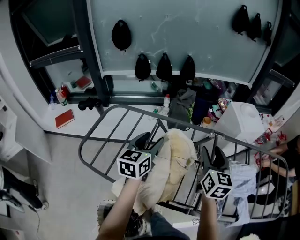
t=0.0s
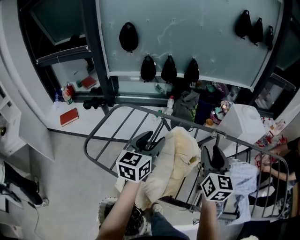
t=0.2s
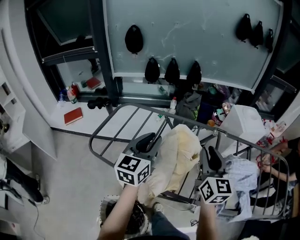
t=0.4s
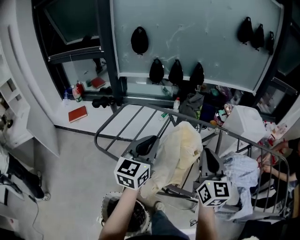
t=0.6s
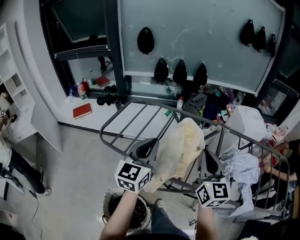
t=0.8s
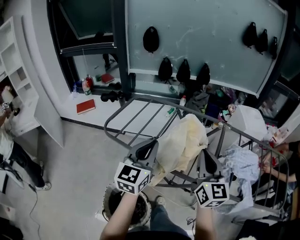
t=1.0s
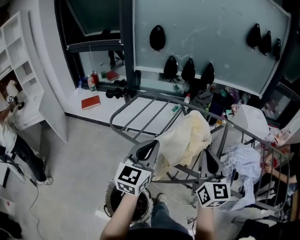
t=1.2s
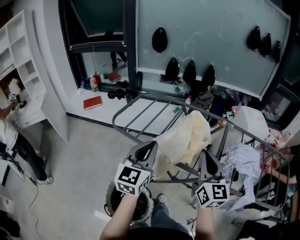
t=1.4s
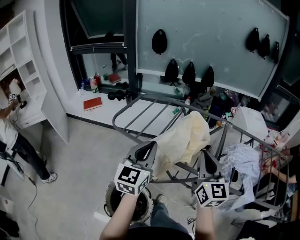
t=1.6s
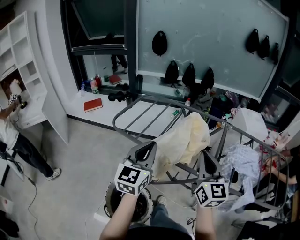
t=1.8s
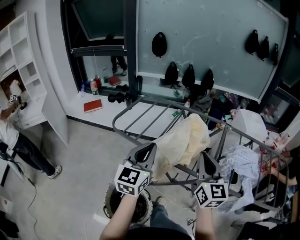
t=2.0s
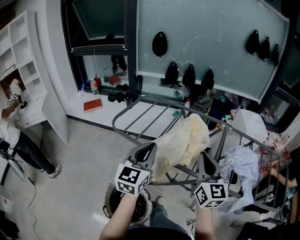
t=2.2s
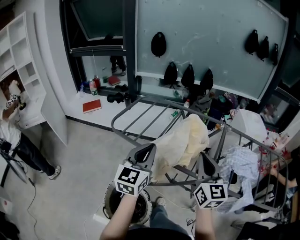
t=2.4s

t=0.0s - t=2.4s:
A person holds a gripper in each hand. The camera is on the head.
t=0.0s - t=1.2s: The left gripper shifts approximately 30 cm backward, rotates approximately 20 degrees, and closes its fingers. The right gripper is displaced backward and to the left by approximately 25 cm, changes its angle by approximately 30 degrees, and closes up.
t=1.2s - t=2.4s: The grippers make only small movements.

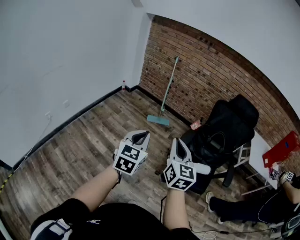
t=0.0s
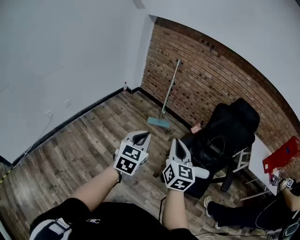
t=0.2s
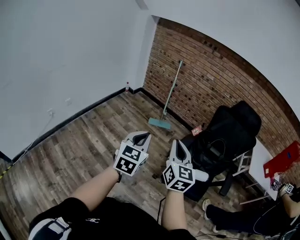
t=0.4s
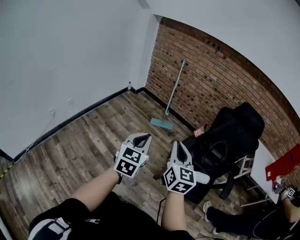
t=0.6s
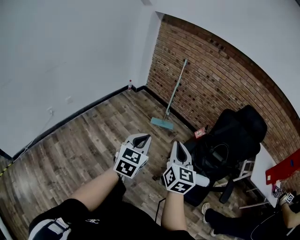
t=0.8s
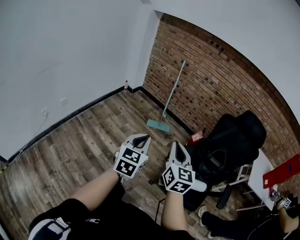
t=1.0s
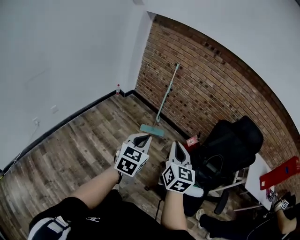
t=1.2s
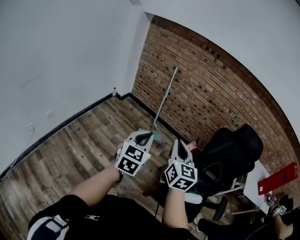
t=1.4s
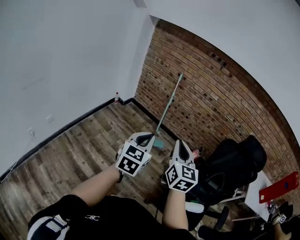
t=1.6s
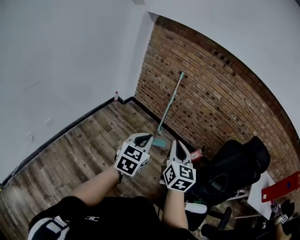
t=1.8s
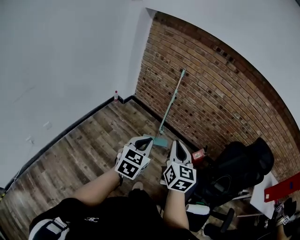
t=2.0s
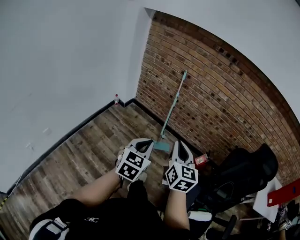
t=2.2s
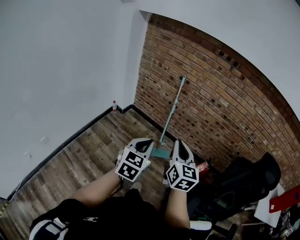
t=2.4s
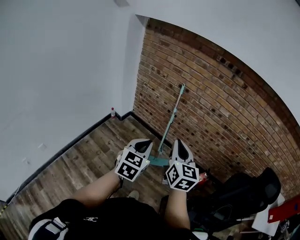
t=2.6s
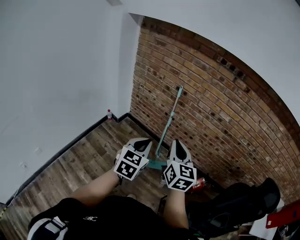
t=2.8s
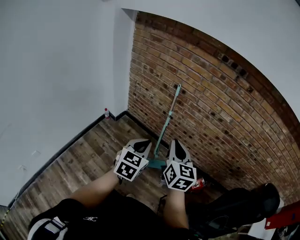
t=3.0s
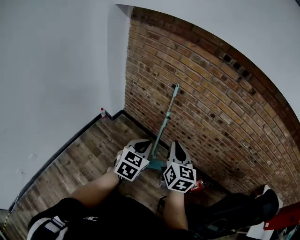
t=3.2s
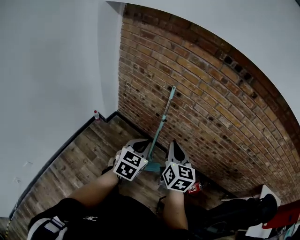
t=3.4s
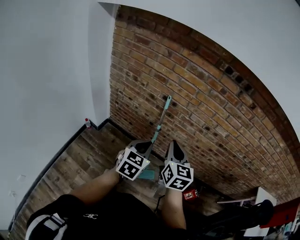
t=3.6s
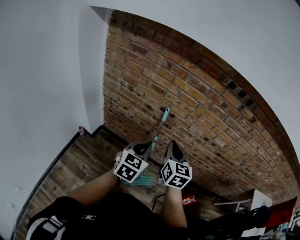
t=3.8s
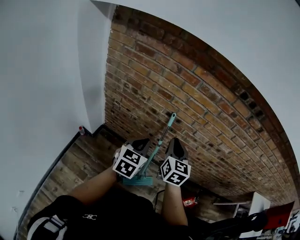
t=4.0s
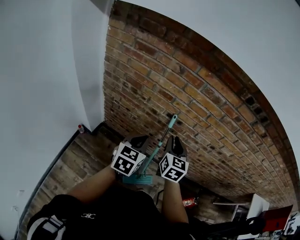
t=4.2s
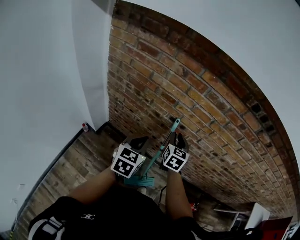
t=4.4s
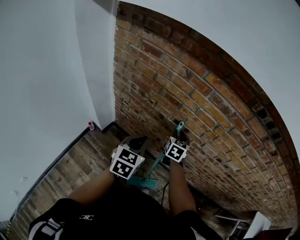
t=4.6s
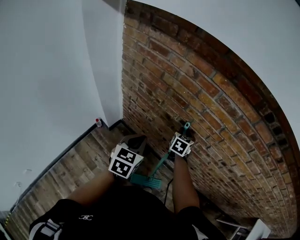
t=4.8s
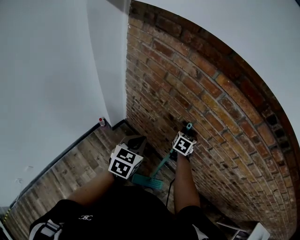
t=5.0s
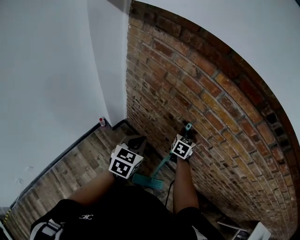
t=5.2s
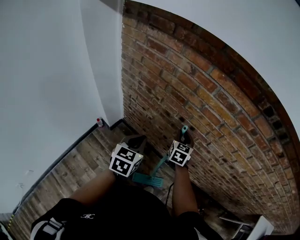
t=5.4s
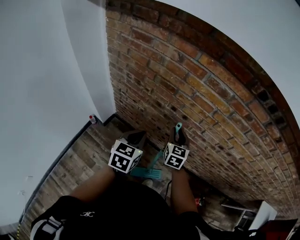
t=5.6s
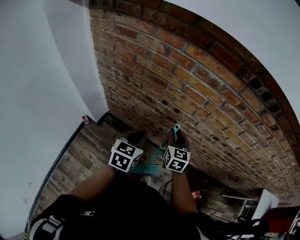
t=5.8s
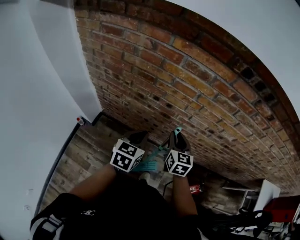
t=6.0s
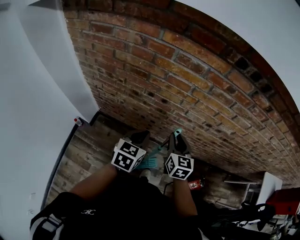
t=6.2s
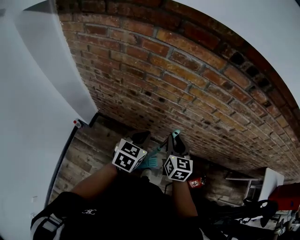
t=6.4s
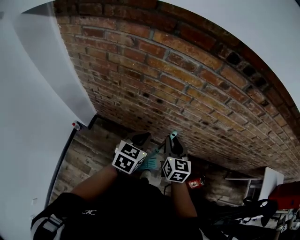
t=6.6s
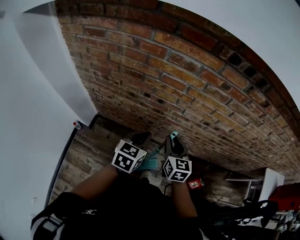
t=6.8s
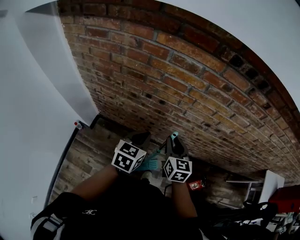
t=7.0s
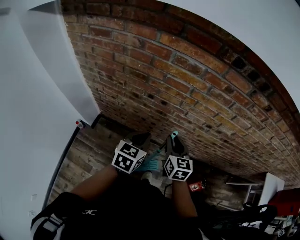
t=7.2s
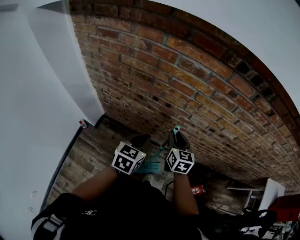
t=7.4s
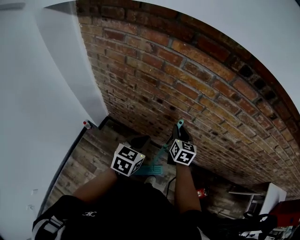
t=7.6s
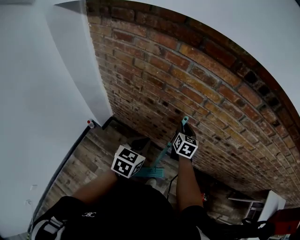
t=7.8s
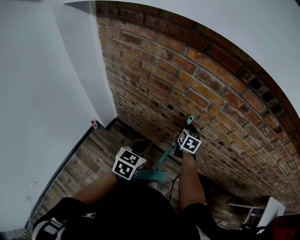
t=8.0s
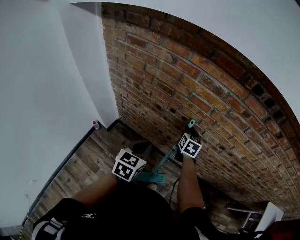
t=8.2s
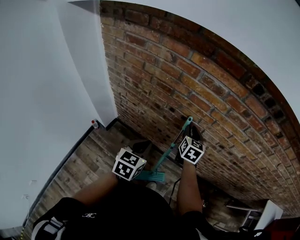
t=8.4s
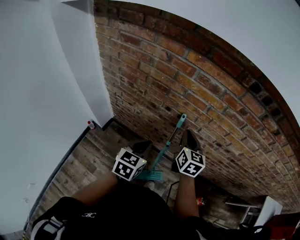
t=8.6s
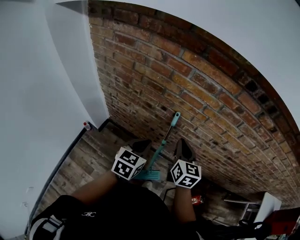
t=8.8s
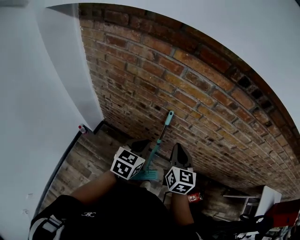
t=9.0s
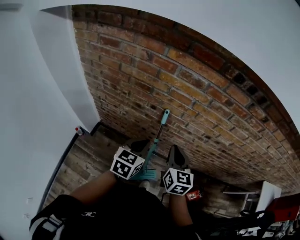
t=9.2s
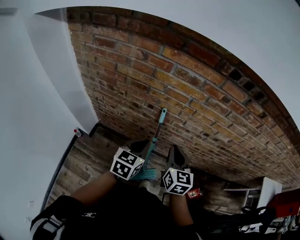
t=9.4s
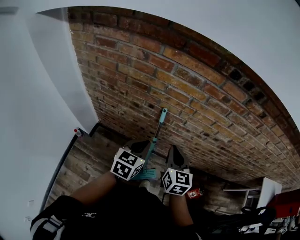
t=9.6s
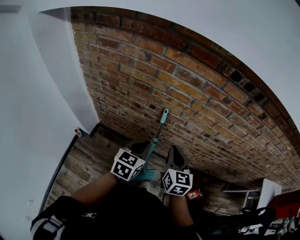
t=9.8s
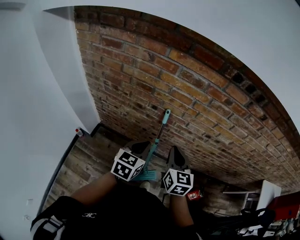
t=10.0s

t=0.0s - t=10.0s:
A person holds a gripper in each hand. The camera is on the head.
t=0.0s - t=1.4s: The two grippers go approximately 30 cm forward.
t=1.4s - t=2.8s: Both grippers are carried forward, approximately 40 cm.
t=2.8s - t=4.2s: The pair of grippers is taken forward, about 40 cm. The right gripper swivels approximately 20 degrees.
t=4.2s - t=5.8s: The left gripper moves to the right, approximately 5 cm. The right gripper travels downward and to the right by some 10 cm, and reaches about 15 cm forward, then returns.
t=5.8s - t=7.2s: Both grippers move to the right, approximately 5 cm.
t=7.2s - t=8.6s: The right gripper heads forward and upward, covering roughly 10 cm, and closes up. Meanwhile the left gripper moves to the left, roughly 5 cm.
t=8.6s - t=10.0s: The right gripper is displaced backward by approximately 10 cm.

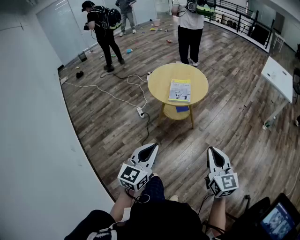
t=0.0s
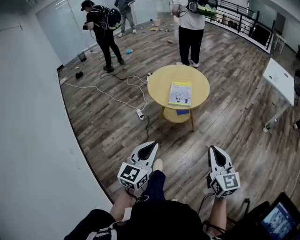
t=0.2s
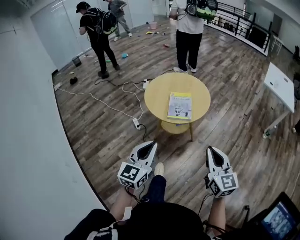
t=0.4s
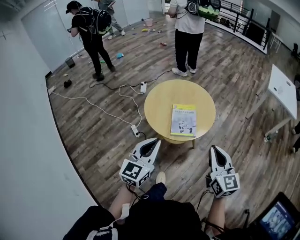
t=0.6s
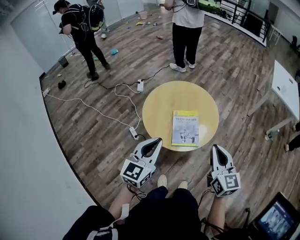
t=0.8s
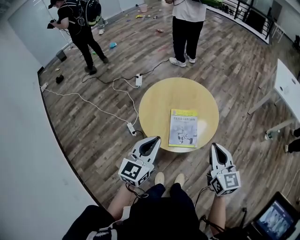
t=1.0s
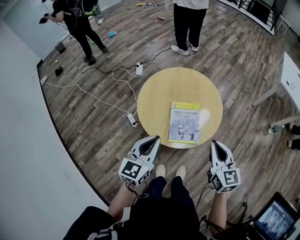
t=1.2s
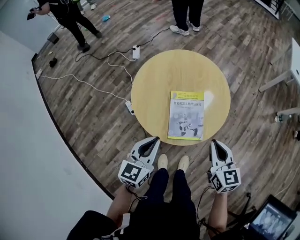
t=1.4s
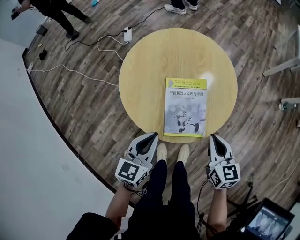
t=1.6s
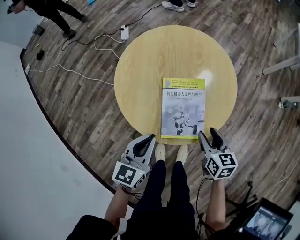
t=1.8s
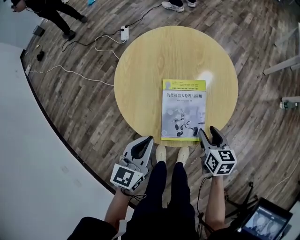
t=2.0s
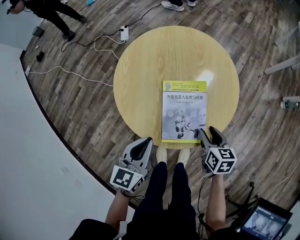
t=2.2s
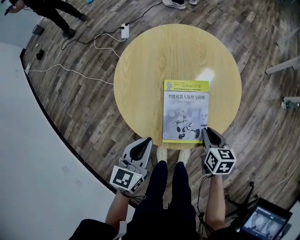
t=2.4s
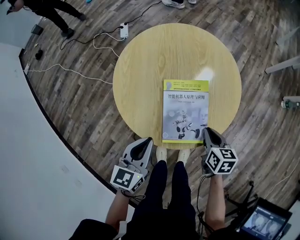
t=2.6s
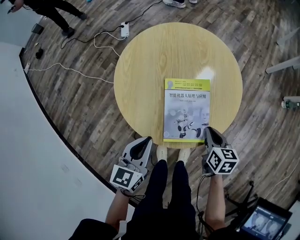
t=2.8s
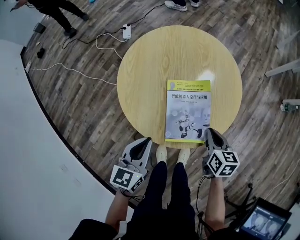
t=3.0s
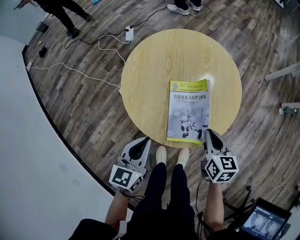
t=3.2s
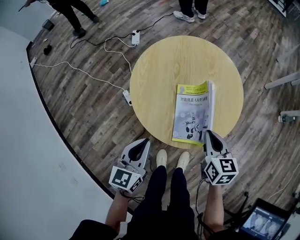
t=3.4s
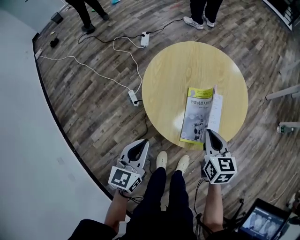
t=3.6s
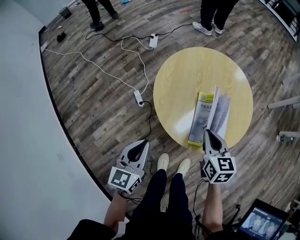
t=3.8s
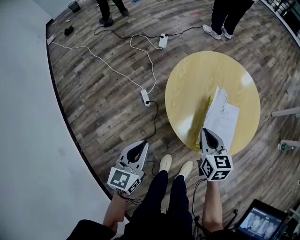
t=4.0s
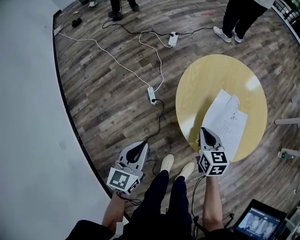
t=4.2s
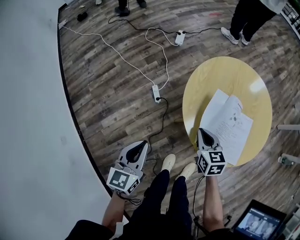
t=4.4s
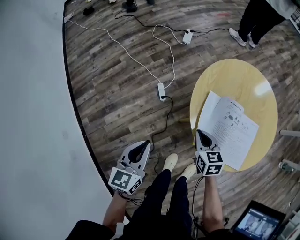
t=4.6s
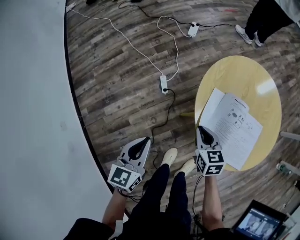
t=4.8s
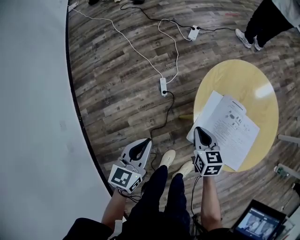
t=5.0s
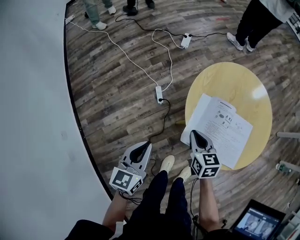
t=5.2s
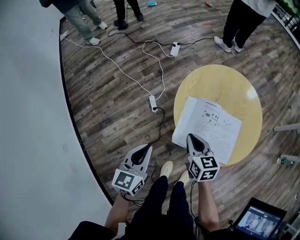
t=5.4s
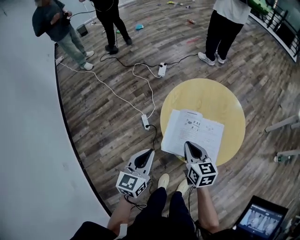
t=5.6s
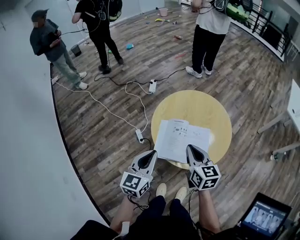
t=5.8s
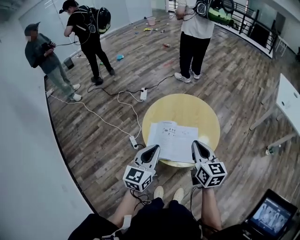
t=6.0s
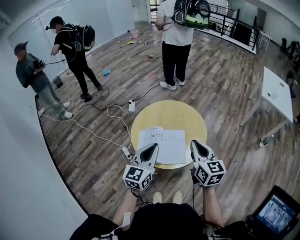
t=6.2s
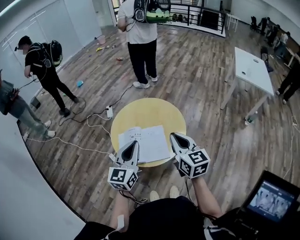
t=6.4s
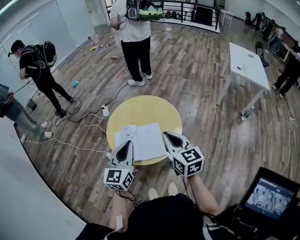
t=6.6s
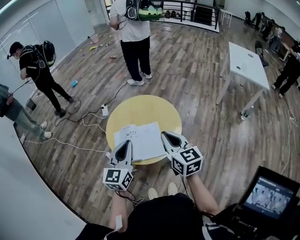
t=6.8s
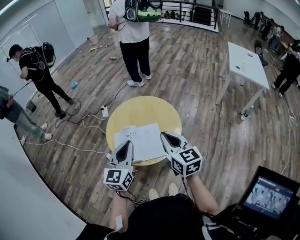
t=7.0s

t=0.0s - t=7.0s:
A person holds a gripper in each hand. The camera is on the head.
t=0.0s - t=1.4s: The two grippers travel together, forward, some 50 cm.
t=1.4s - t=2.8s: The right gripper travels downward by about 20 cm, turns by roughly 30 degrees, and opens, then closes once more; the left gripper travels downward by about 10 cm.
t=2.8s - t=4.2s: Both grippers travel together to the left, some 25 cm. The left gripper swivels roughly 20 degrees. The right gripper turns by roughly 30 degrees.
t=4.2s - t=5.6s: The right gripper heads upward, covering about 10 cm, while the left gripper travels to the right and upward by approximately 10 cm.
t=5.6s - t=7.0s: The two grippers go approximately 25 cm to the right and upward. The left gripper rotates about 20 degrees, while the right gripper changes its angle by some 30 degrees.

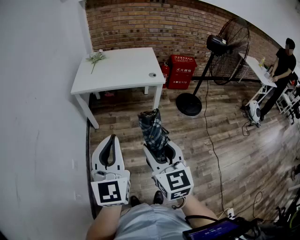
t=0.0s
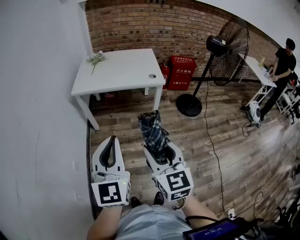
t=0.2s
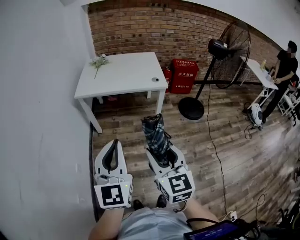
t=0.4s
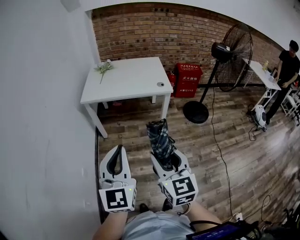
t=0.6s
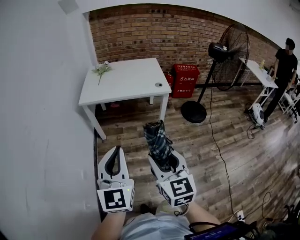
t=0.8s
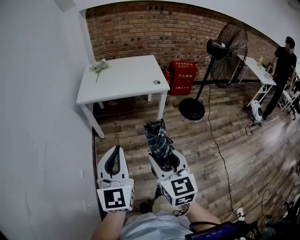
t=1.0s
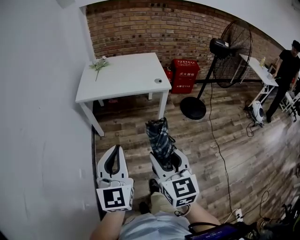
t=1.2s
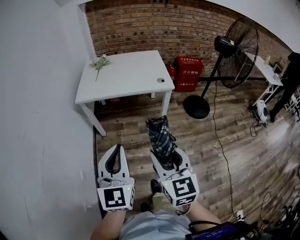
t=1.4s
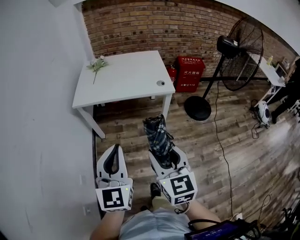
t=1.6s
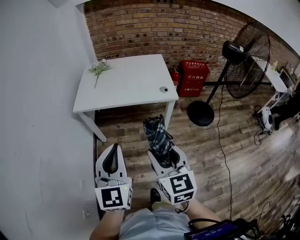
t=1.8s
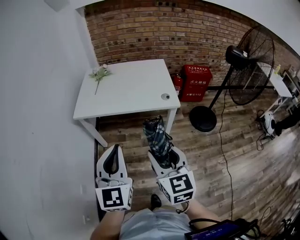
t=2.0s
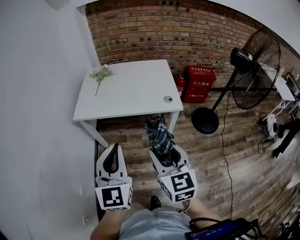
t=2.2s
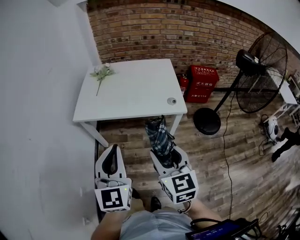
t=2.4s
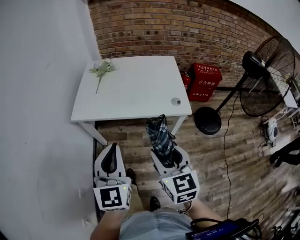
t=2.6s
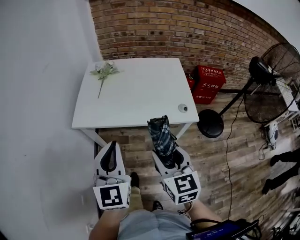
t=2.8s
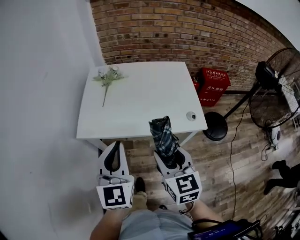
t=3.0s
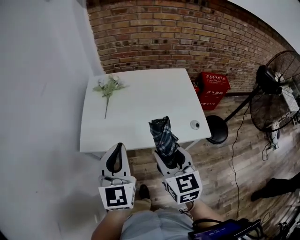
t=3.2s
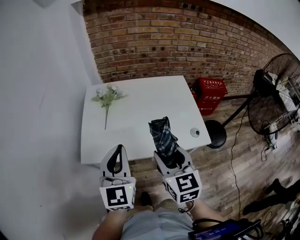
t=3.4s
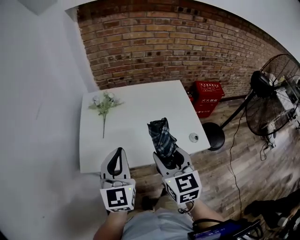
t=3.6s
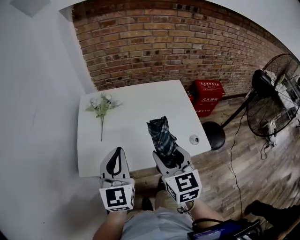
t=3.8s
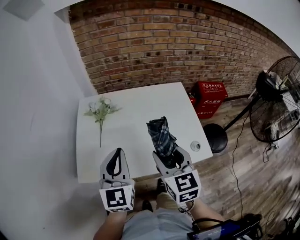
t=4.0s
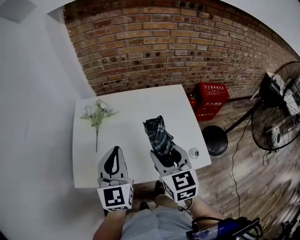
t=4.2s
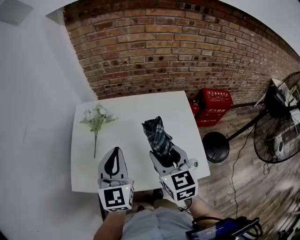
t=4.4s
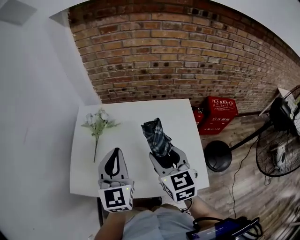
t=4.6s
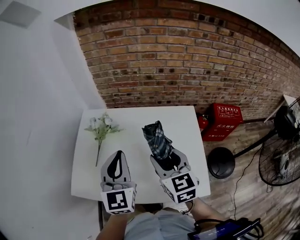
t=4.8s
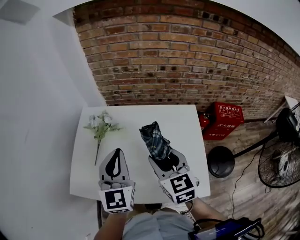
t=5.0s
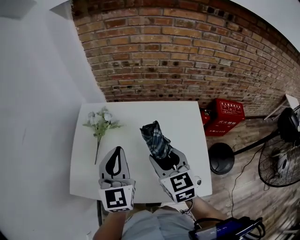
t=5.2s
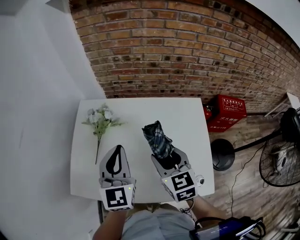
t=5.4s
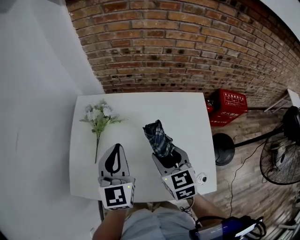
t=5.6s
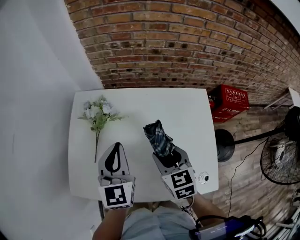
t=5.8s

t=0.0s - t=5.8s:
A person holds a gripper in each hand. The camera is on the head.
t=0.0s - t=1.4s: The grippers both shift forward by approximately 5 cm.
t=1.4s - t=2.8s: Both grippers move forward, some 35 cm.
t=2.8s - t=4.4s: The grippers both shift forward by roughly 35 cm.
t=4.4s - t=5.8s: The grippers both shift forward and downward by approximately 15 cm.
